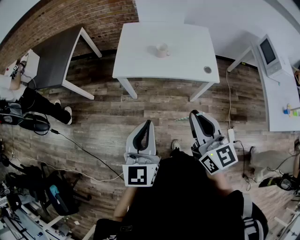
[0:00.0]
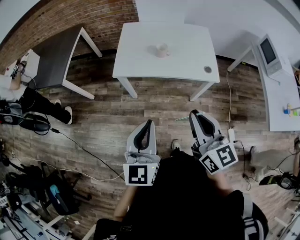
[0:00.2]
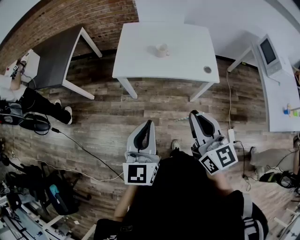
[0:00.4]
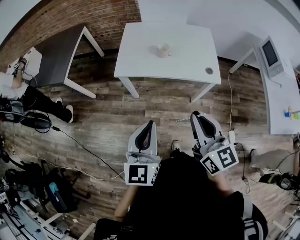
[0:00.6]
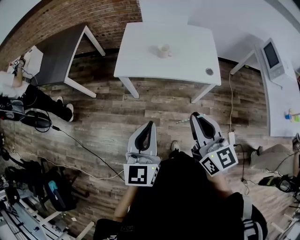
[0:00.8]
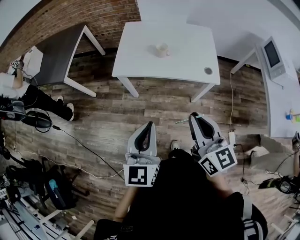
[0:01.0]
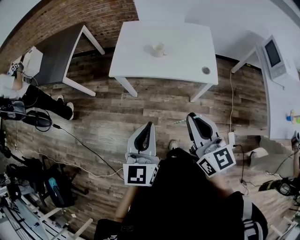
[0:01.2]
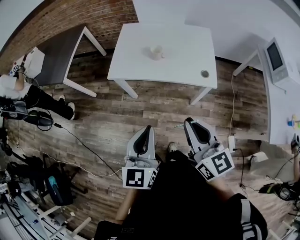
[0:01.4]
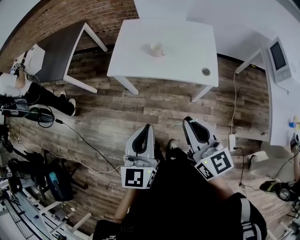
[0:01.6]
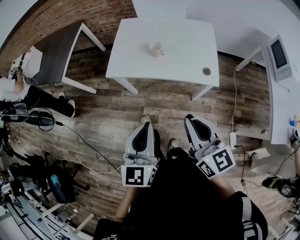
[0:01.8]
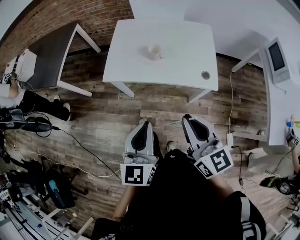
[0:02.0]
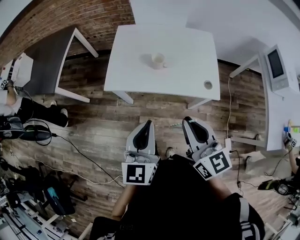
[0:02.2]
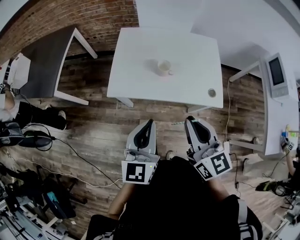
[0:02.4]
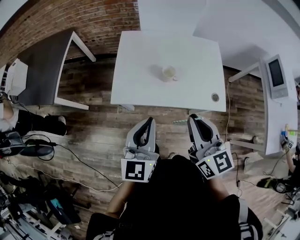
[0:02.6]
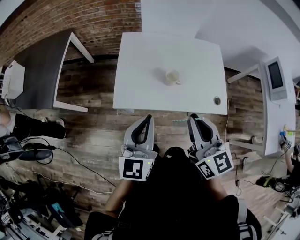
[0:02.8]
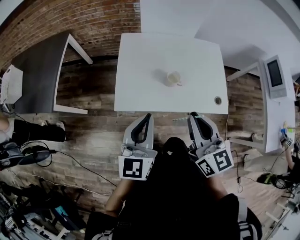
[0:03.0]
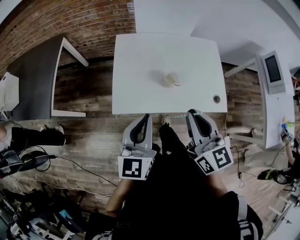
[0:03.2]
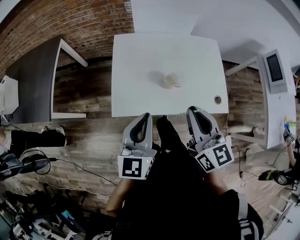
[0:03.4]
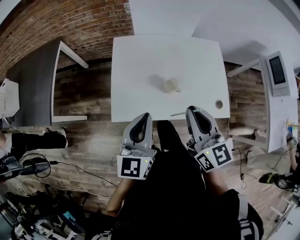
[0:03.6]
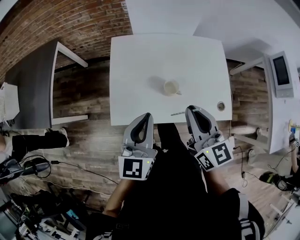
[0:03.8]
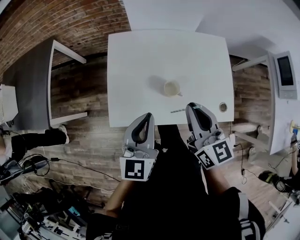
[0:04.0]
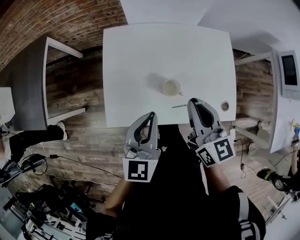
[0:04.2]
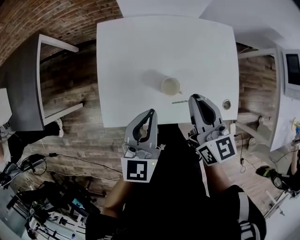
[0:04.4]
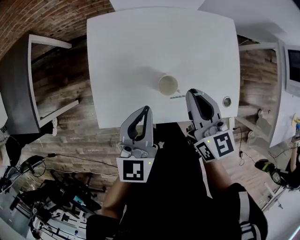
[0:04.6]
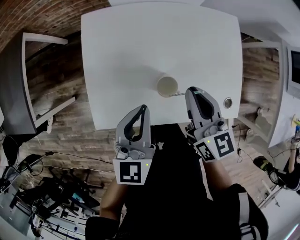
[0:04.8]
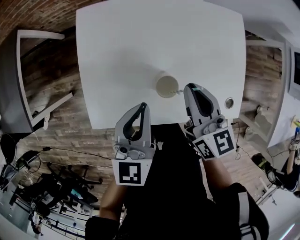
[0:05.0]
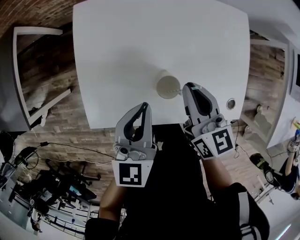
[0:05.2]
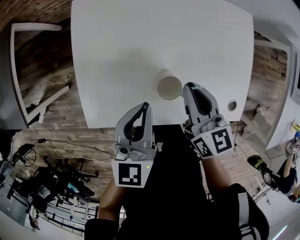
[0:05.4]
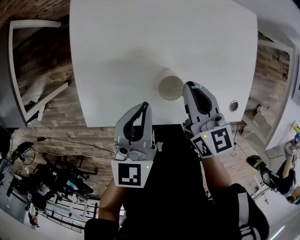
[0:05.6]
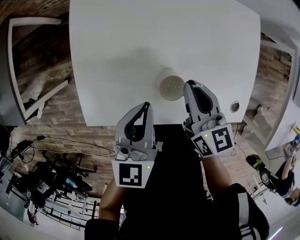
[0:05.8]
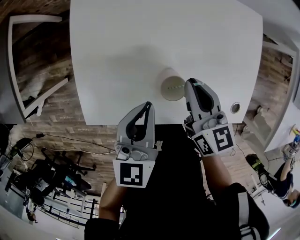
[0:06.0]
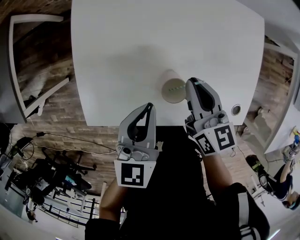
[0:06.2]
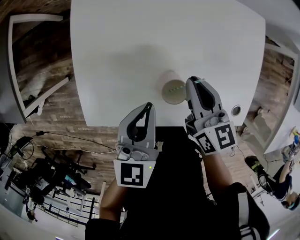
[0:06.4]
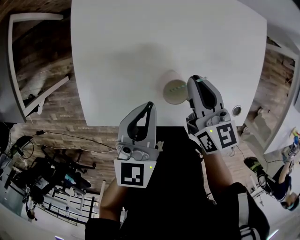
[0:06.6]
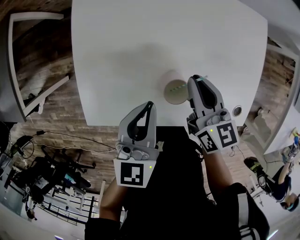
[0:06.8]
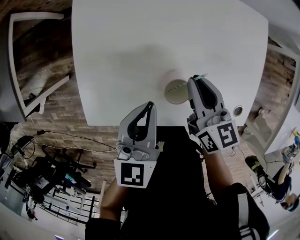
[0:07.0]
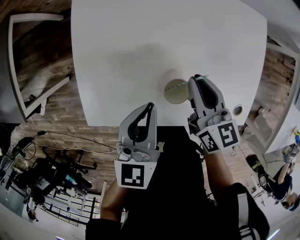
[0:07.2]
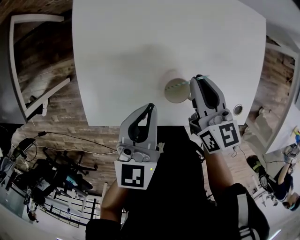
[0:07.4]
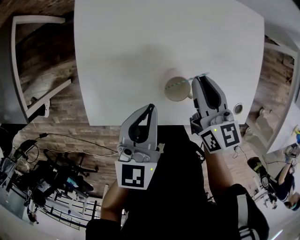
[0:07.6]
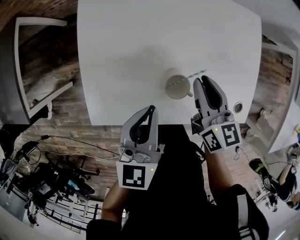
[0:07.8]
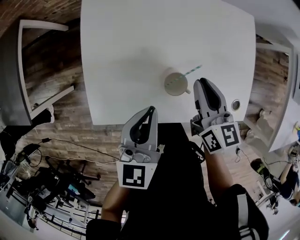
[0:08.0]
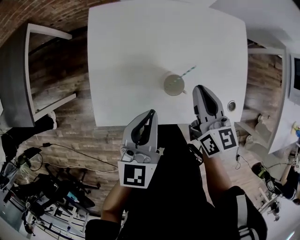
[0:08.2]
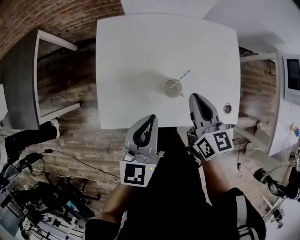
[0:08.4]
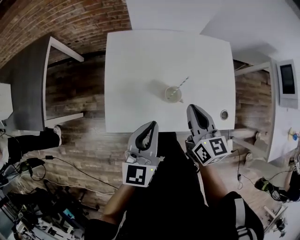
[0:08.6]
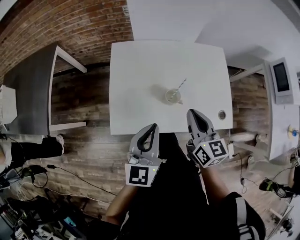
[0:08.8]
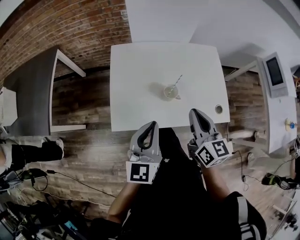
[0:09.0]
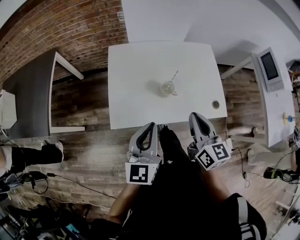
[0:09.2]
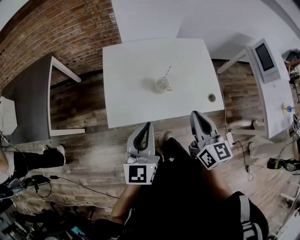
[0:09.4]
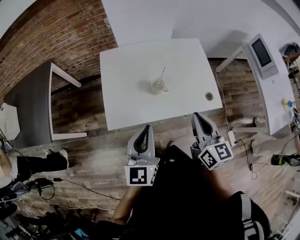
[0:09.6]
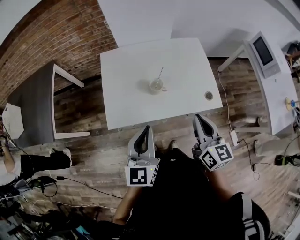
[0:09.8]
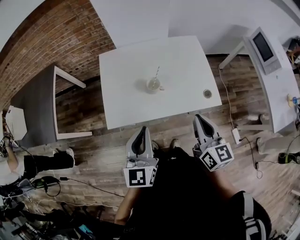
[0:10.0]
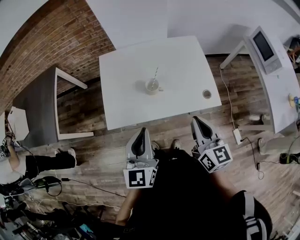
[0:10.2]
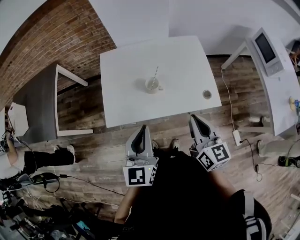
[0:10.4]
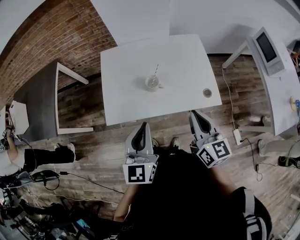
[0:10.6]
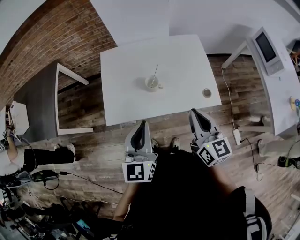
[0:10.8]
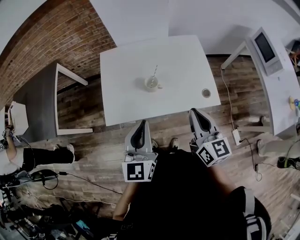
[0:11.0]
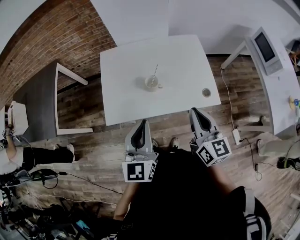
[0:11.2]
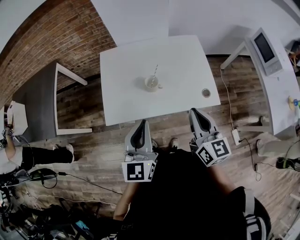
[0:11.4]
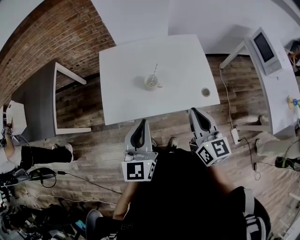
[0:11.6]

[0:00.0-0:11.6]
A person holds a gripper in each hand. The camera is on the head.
0:00.0 to 0:01.4: The grippers both shift to the right by approximately 10 cm.
0:01.4 to 0:02.8: The right gripper goes approximately 30 cm forward and to the left. The left gripper travels forward by some 30 cm.
0:02.8 to 0:04.4: The two grippers go about 25 cm forward and downward.
0:04.4 to 0:05.8: The right gripper is displaced downward by roughly 15 cm. Meanwhile the left gripper goes approximately 10 cm downward and forward.
0:05.8 to 0:07.2: The grippers make only small movements.
0:07.2 to 0:08.8: The grippers both shift upward and backward by approximately 20 cm.
0:08.8 to 0:10.2: The left gripper heads backward, upward and to the right, covering roughly 15 cm. Meanwhile the right gripper is displaced backward, to the right and upward by about 20 cm.
0:10.2 to 0:11.6: The grippers make only small movements.

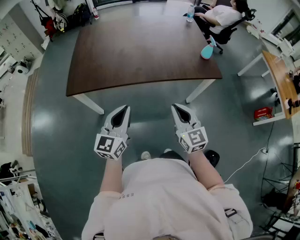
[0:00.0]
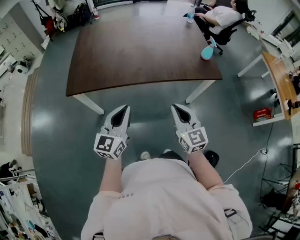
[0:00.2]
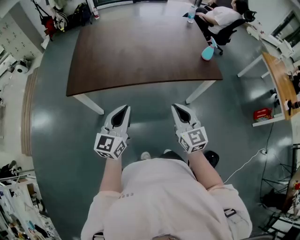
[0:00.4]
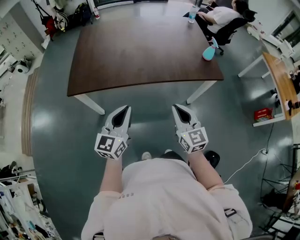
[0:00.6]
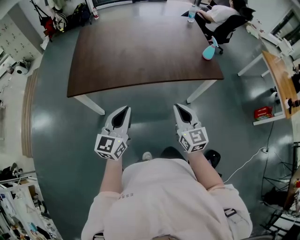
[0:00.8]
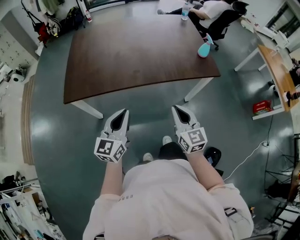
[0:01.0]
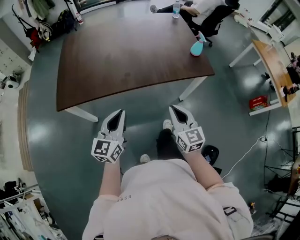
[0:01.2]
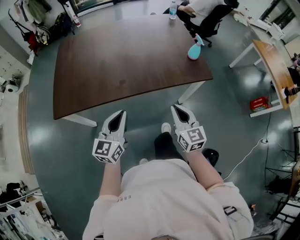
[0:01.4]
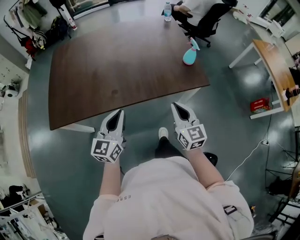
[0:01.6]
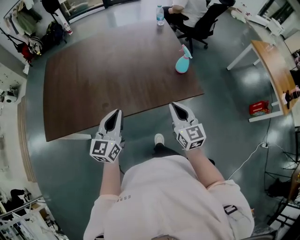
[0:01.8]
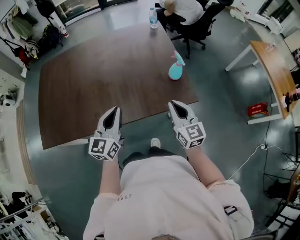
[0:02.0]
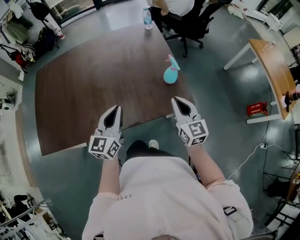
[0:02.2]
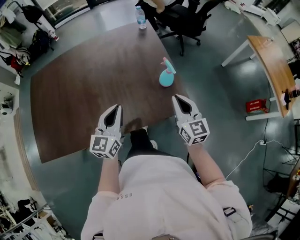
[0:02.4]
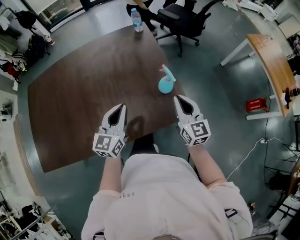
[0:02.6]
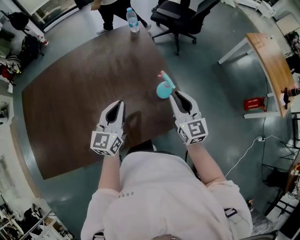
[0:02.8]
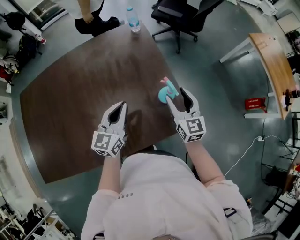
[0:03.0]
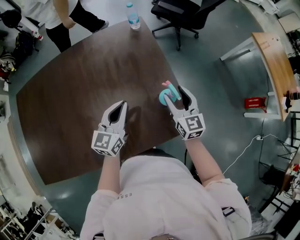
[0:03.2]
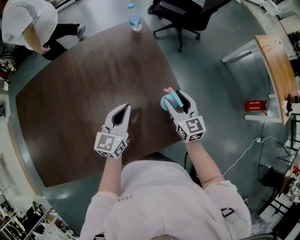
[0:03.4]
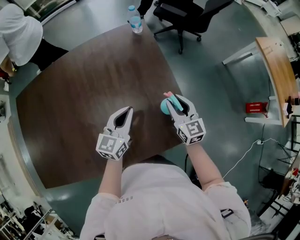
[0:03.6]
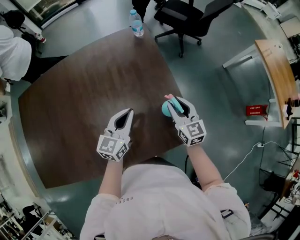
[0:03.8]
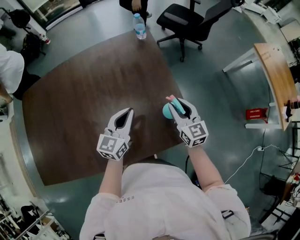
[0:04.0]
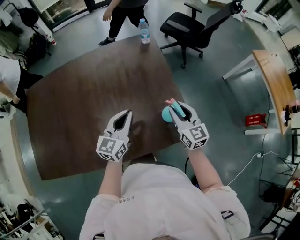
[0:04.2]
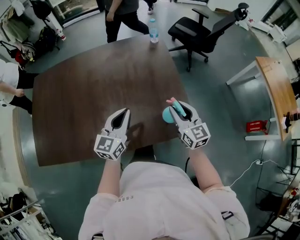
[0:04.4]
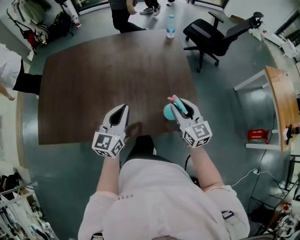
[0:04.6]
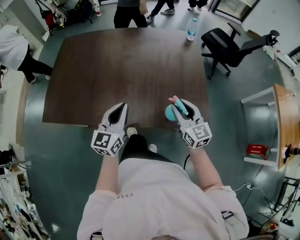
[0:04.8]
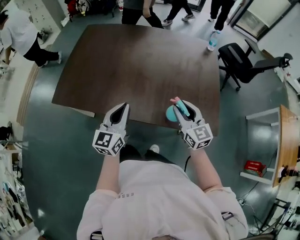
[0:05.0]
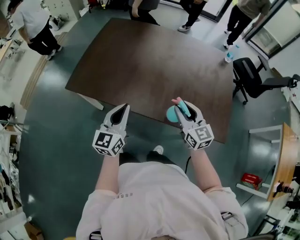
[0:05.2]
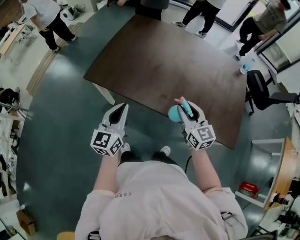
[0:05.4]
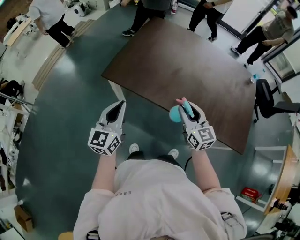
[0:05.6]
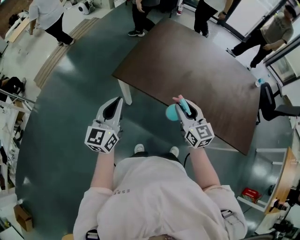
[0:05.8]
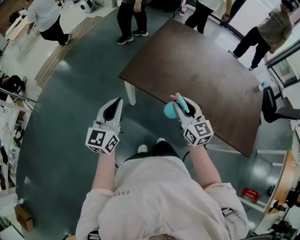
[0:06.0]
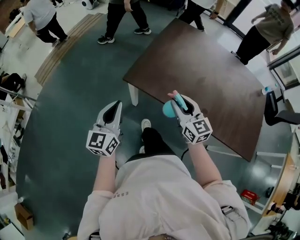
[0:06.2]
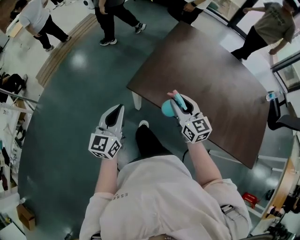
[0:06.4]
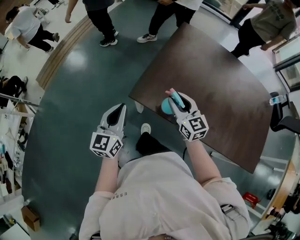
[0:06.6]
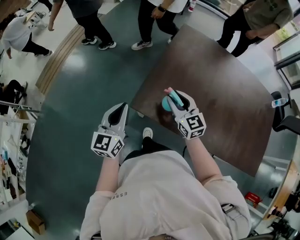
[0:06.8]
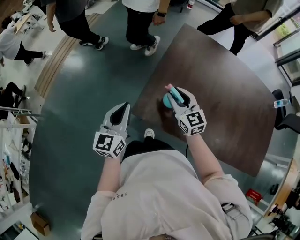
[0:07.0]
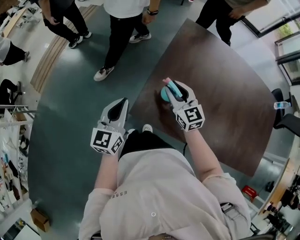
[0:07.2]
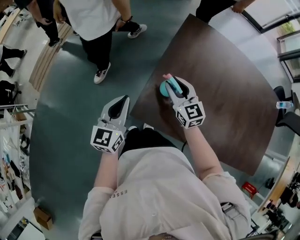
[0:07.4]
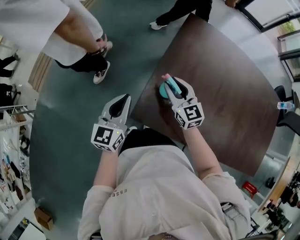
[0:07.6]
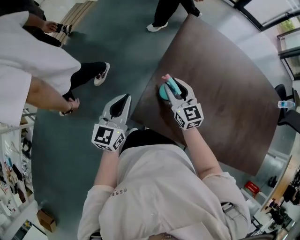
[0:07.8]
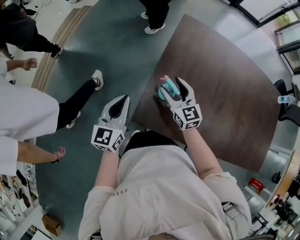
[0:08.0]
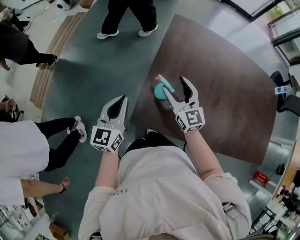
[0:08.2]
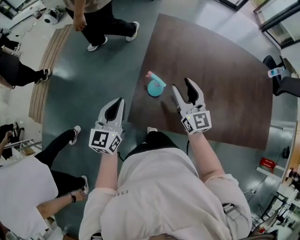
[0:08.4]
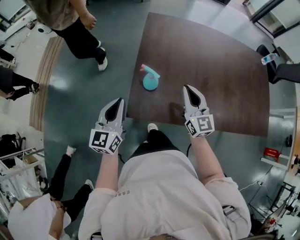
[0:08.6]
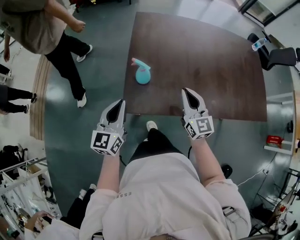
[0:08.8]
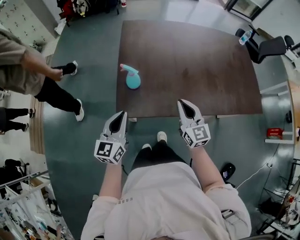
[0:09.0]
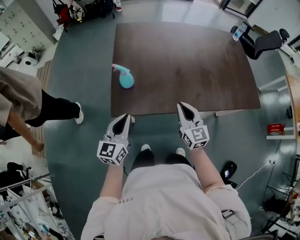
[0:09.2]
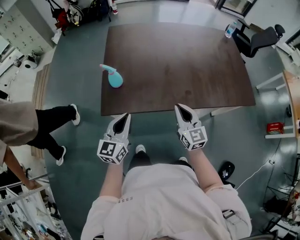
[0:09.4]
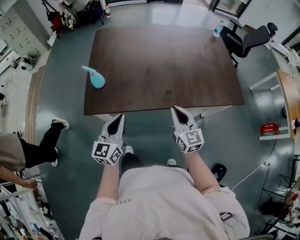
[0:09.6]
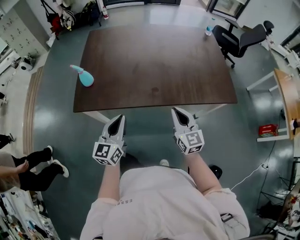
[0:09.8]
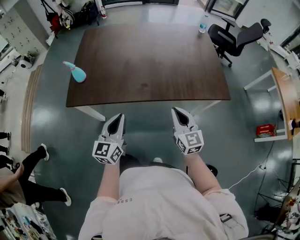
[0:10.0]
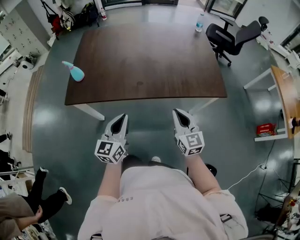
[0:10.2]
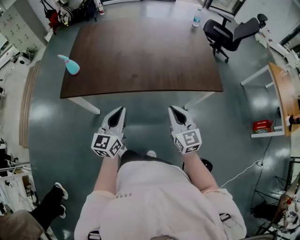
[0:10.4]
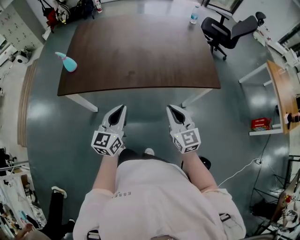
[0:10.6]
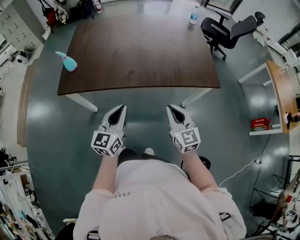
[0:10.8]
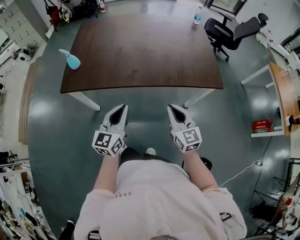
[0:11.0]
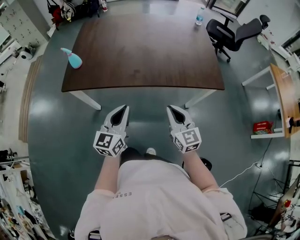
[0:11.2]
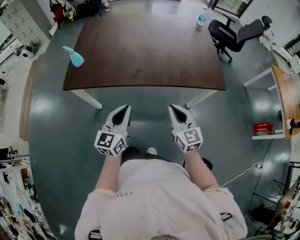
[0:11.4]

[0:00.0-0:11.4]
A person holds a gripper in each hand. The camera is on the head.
0:00.0 to 0:01.4: The left gripper heads forward, covering approximately 10 cm; the right gripper heads forward and to the right, covering some 10 cm.
0:01.4 to 0:02.8: Both grippers are carried forward and to the right, roughly 40 cm.
0:02.8 to 0:04.2: The right gripper opens and closes again.
0:04.2 to 0:05.6: The two grippers travel together, about 60 cm. The left gripper swivels roughly 50 degrees. The right gripper changes its angle by some 40 degrees.
0:05.6 to 0:07.2: Both grippers travel together forward and to the left, roughly 40 cm.
0:07.2 to 0:08.6: The right gripper is displaced to the right, backward and upward by about 15 cm, changes its angle by roughly 30 degrees, and closes.
0:08.6 to 0:10.0: Both grippers are carried to the right and backward, approximately 50 cm.
0:10.0 to 0:11.4: The right gripper heads backward, covering some 5 cm. Meanwhile the left gripper travels to the right and backward by approximately 10 cm.

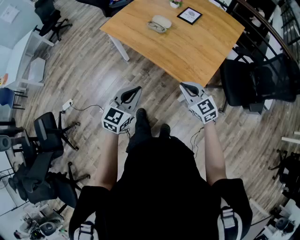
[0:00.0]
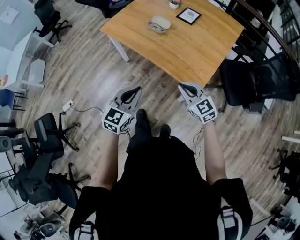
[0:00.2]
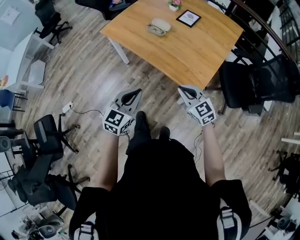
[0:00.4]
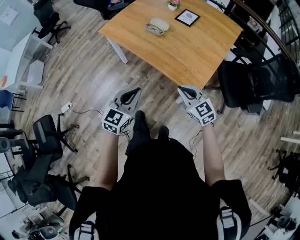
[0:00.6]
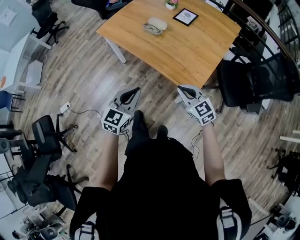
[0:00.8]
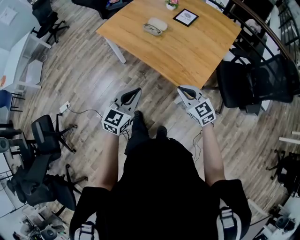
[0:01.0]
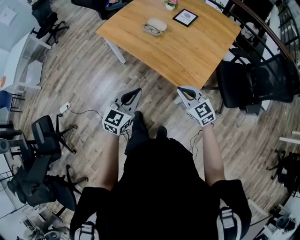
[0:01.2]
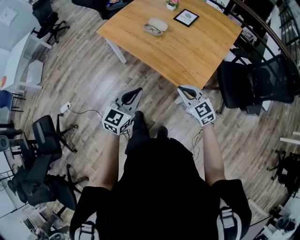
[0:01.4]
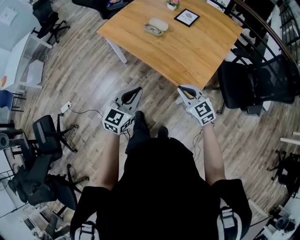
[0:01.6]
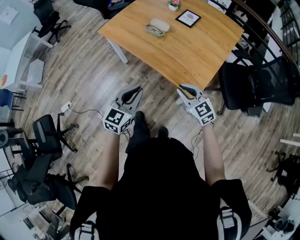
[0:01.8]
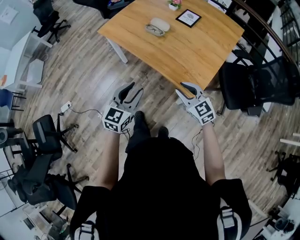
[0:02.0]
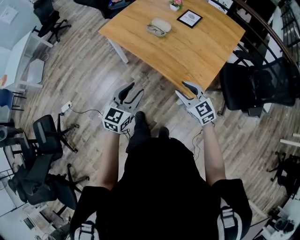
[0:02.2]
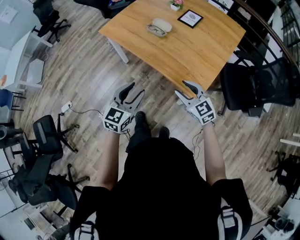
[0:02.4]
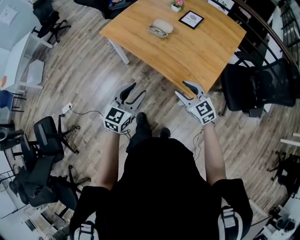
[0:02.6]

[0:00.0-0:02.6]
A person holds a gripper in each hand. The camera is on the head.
0:00.0 to 0:01.2: The grippers stay close to where they were, moving slightly.
0:01.2 to 0:02.6: The left gripper changes place by about 5 cm, and opens its fingers; the right gripper opens its fingers.
